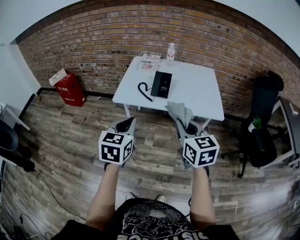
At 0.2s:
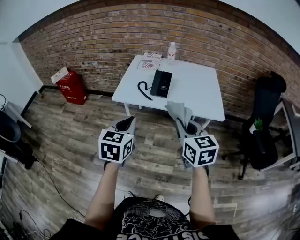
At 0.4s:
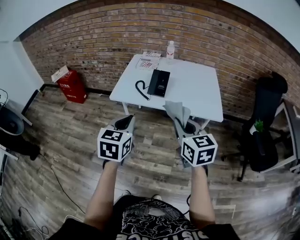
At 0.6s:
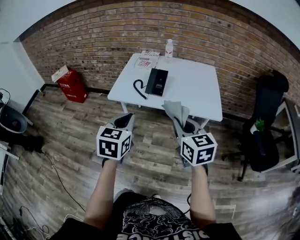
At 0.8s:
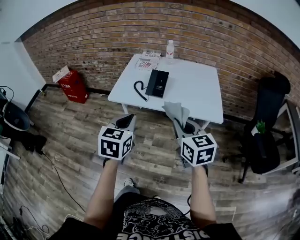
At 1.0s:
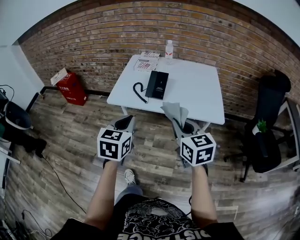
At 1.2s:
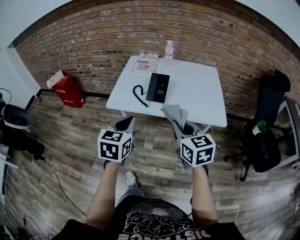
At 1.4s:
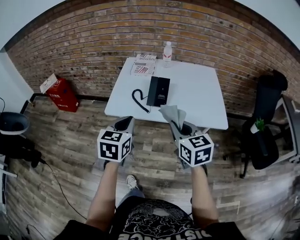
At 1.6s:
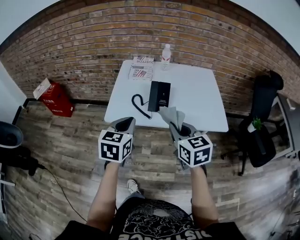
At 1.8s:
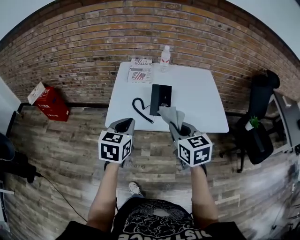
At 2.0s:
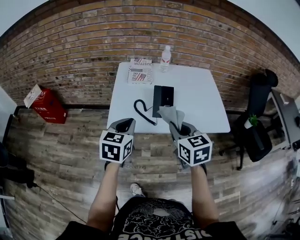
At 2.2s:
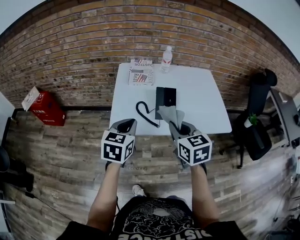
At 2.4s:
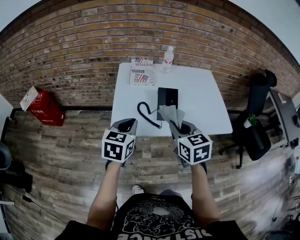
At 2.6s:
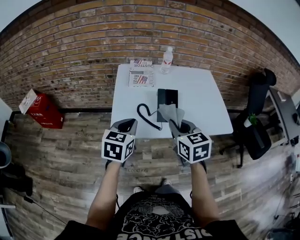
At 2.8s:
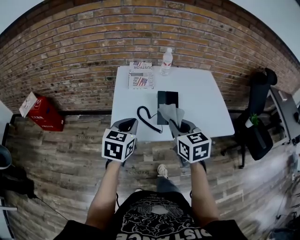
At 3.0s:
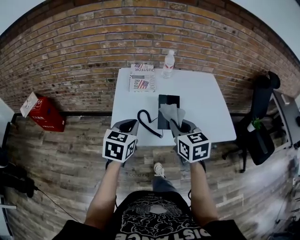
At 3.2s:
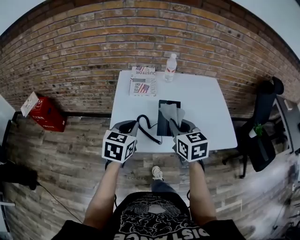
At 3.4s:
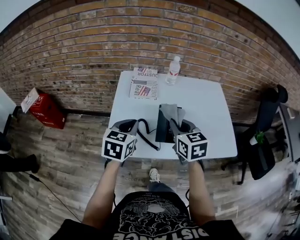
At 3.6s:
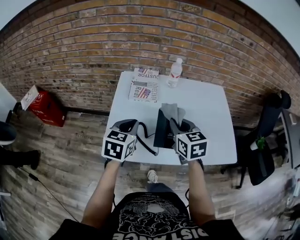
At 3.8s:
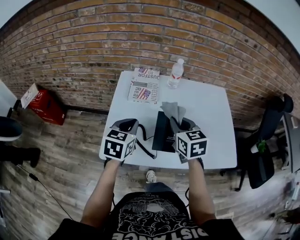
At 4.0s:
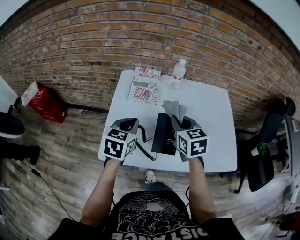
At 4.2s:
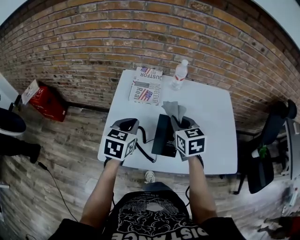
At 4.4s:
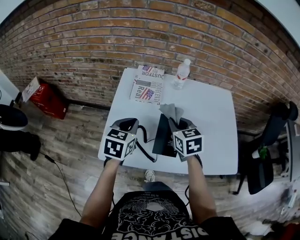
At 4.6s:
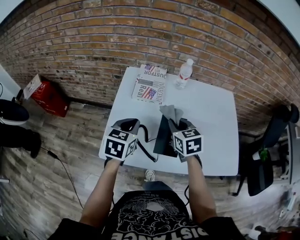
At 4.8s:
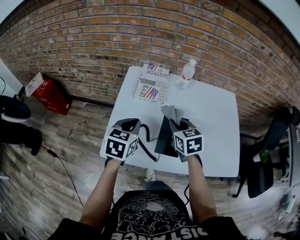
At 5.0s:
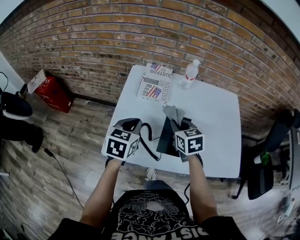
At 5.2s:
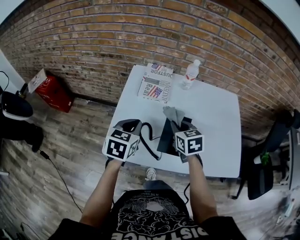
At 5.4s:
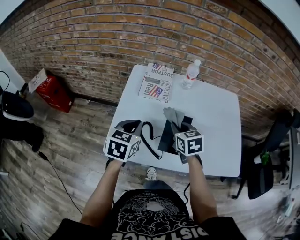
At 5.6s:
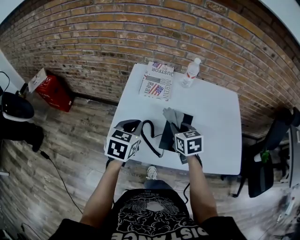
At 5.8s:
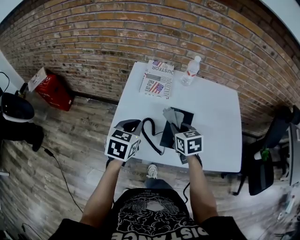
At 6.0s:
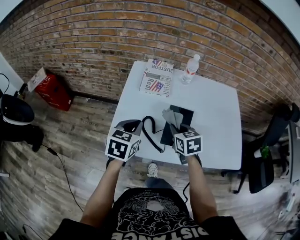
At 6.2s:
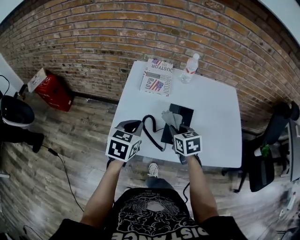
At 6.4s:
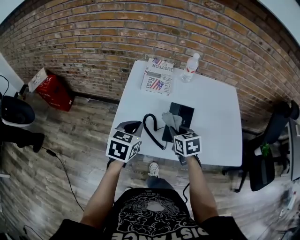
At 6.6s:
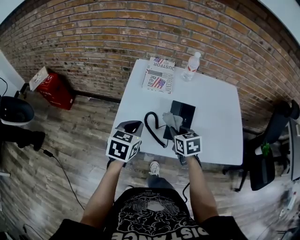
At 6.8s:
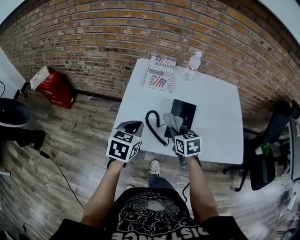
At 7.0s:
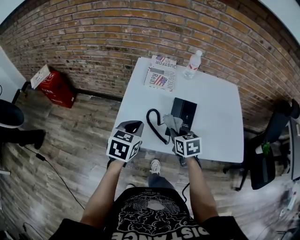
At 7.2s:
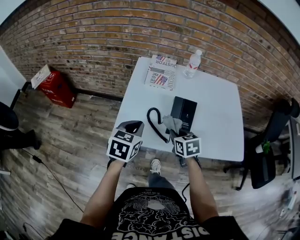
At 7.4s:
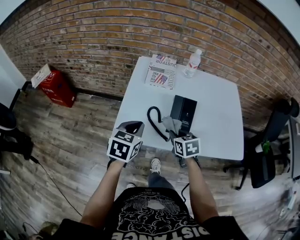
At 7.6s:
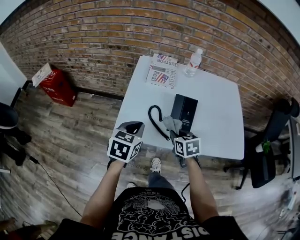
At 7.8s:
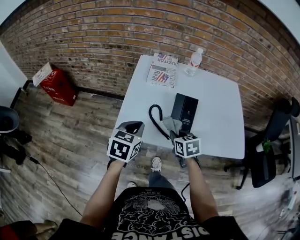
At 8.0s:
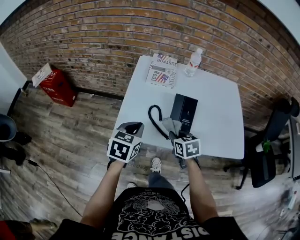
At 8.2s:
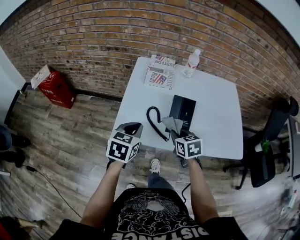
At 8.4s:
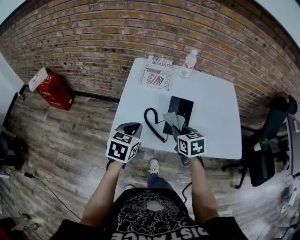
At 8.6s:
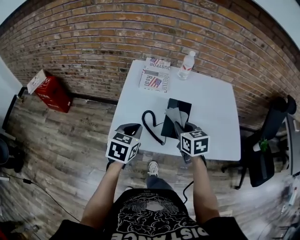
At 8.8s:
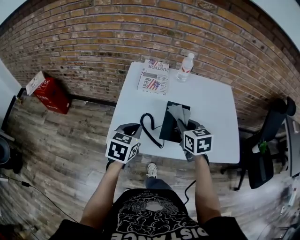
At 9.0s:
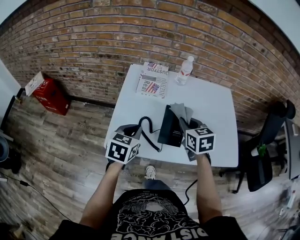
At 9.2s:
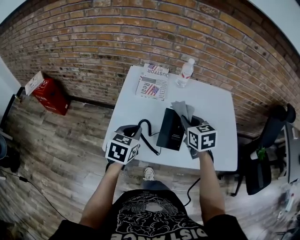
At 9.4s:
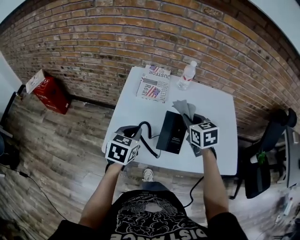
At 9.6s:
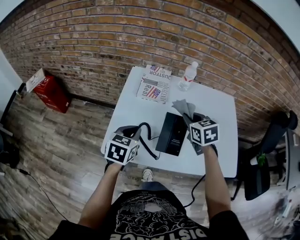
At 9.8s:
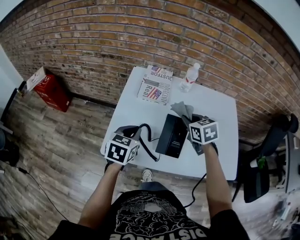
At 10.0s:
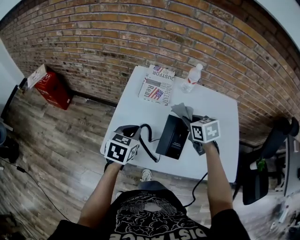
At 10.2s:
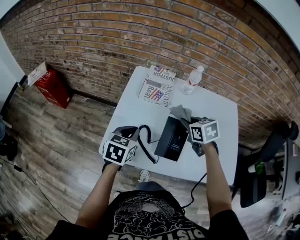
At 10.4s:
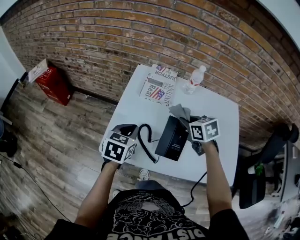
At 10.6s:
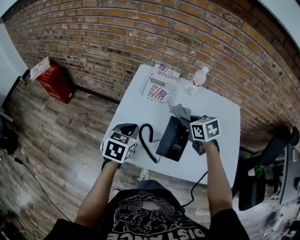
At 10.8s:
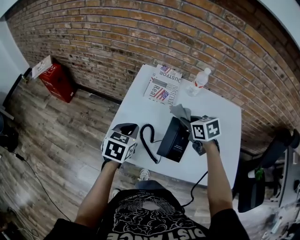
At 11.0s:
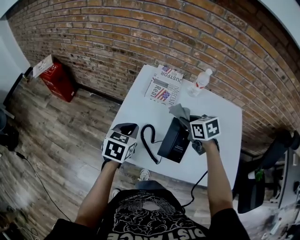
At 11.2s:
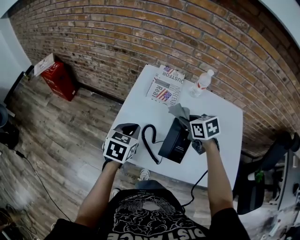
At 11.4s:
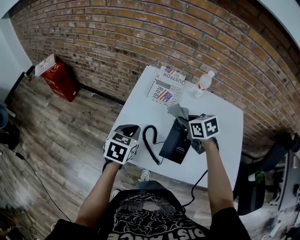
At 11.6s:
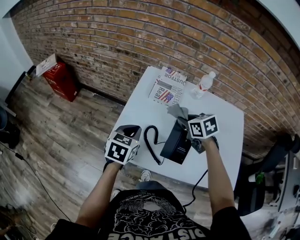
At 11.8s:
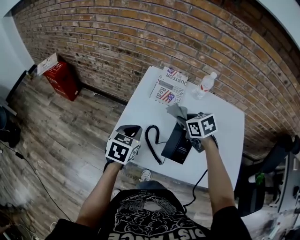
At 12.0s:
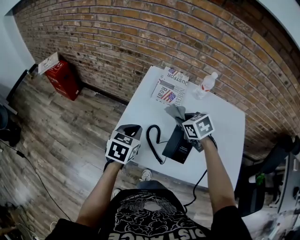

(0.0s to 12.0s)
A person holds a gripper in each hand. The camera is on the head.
0.0s - 1.6s: The two grippers go approximately 15 cm forward.
1.6s - 3.0s: Both grippers travel together forward and to the left, some 15 cm.
3.0s - 4.4s: The two grippers go approximately 15 cm forward.
4.4s - 6.0s: The right gripper is displaced downward and backward by some 10 cm; the left gripper shifts roughly 5 cm backward.
6.0s - 7.6s: Both grippers move backward, approximately 10 cm.
7.6s - 9.0s: The right gripper heads upward, forward and to the right, covering approximately 15 cm. The left gripper shifts some 5 cm forward.
9.0s - 10.4s: The right gripper goes some 10 cm forward, and swivels some 20 degrees, while the left gripper heads forward, covering some 5 cm.
10.4s - 12.0s: The right gripper heads to the left, covering approximately 5 cm.

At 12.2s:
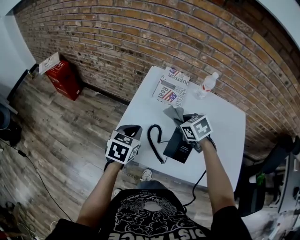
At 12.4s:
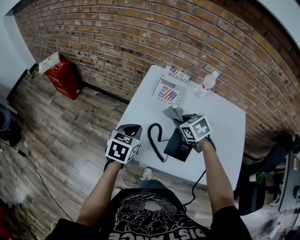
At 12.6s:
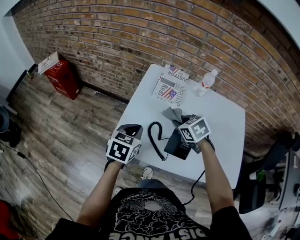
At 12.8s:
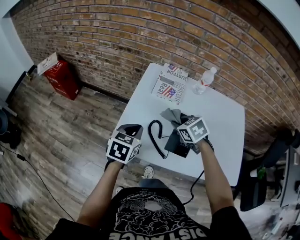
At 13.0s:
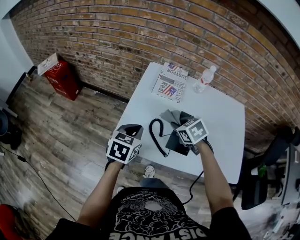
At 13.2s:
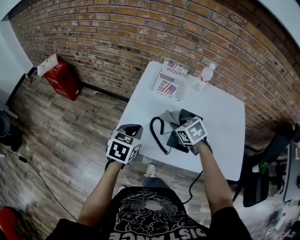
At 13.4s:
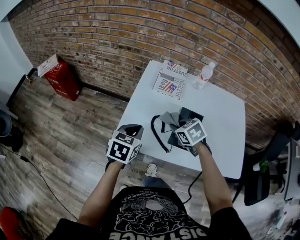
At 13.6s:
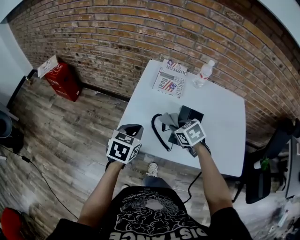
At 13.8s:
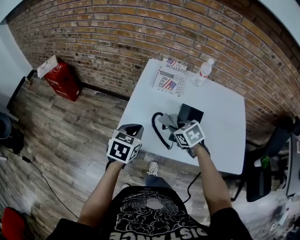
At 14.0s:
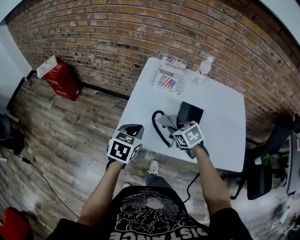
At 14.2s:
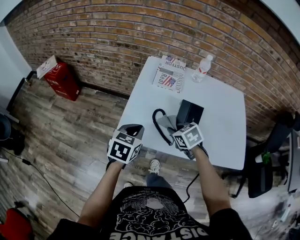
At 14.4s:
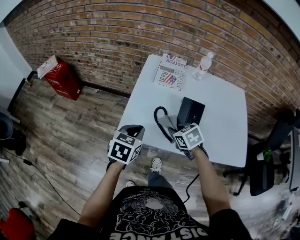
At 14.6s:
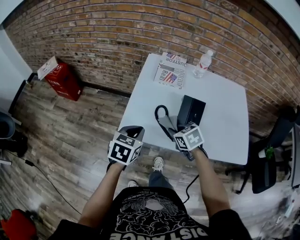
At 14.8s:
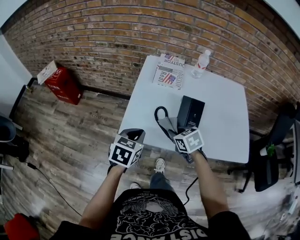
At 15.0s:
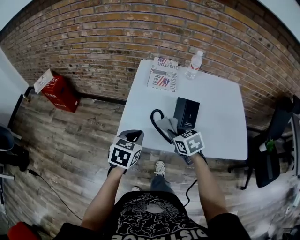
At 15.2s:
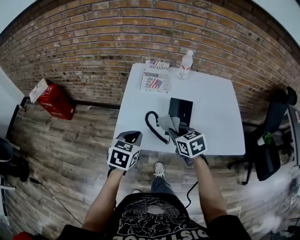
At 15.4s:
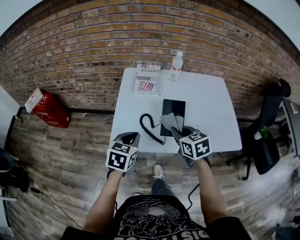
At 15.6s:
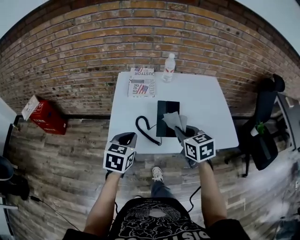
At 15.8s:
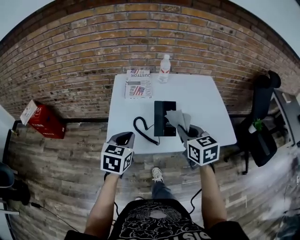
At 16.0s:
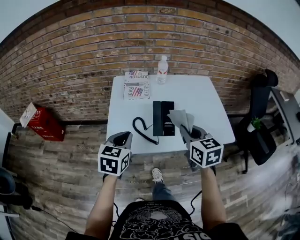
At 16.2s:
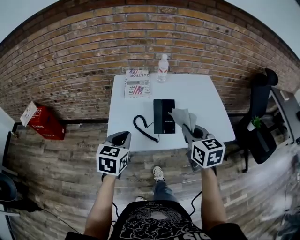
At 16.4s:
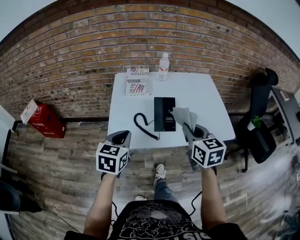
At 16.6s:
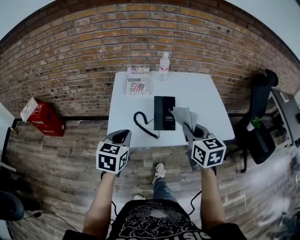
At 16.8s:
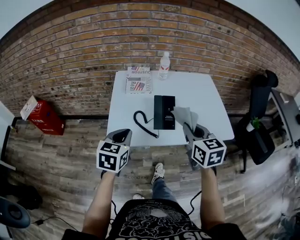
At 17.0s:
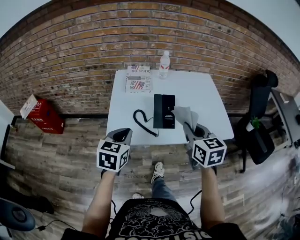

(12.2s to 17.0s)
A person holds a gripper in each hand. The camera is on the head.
12.2s - 13.8s: The left gripper moves backward, about 5 cm; the right gripper shifts approximately 10 cm backward.
13.8s - 15.4s: The right gripper moves upward and backward, approximately 10 cm, and changes its angle by roughly 30 degrees.
15.4s - 17.0s: The right gripper goes about 15 cm upward, backward and to the right, and rotates roughly 20 degrees. The left gripper changes place by about 5 cm.

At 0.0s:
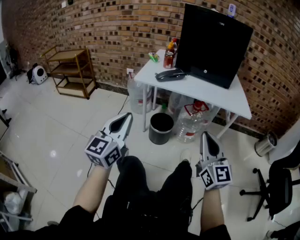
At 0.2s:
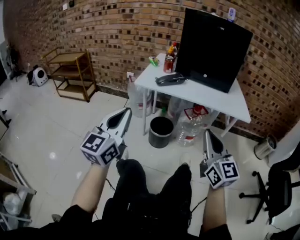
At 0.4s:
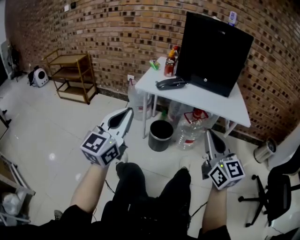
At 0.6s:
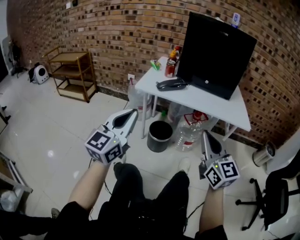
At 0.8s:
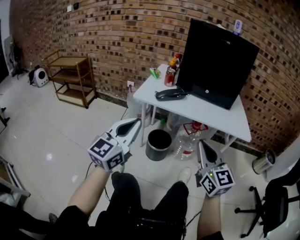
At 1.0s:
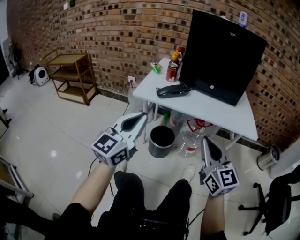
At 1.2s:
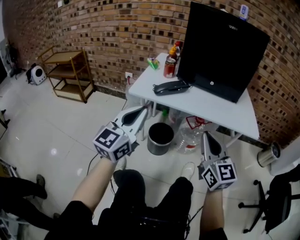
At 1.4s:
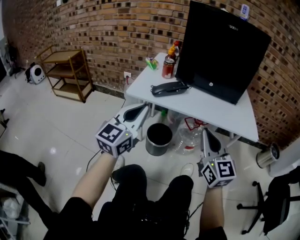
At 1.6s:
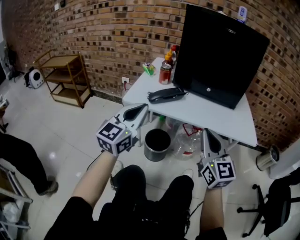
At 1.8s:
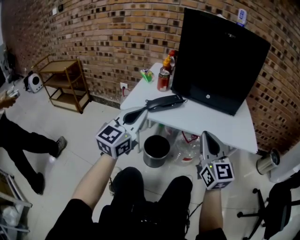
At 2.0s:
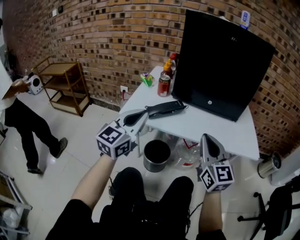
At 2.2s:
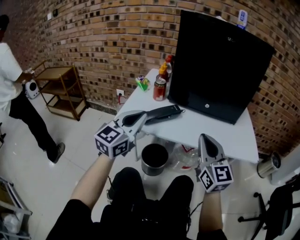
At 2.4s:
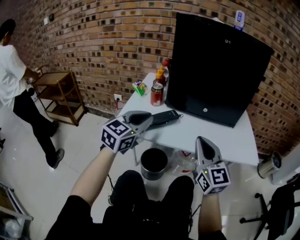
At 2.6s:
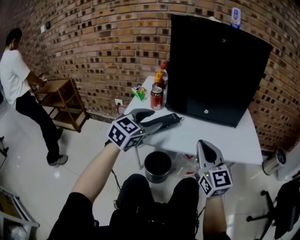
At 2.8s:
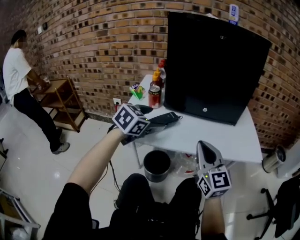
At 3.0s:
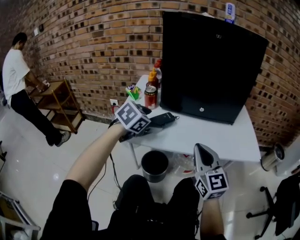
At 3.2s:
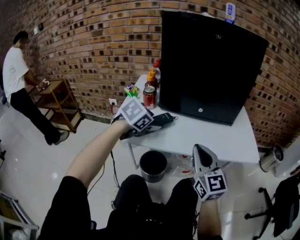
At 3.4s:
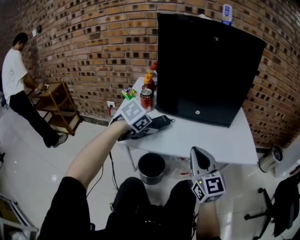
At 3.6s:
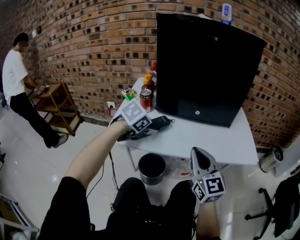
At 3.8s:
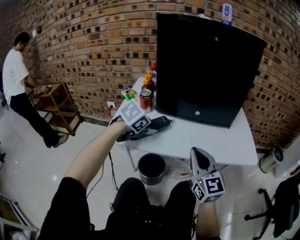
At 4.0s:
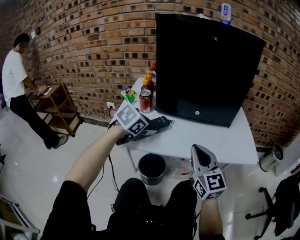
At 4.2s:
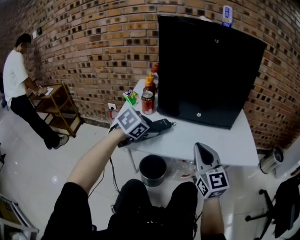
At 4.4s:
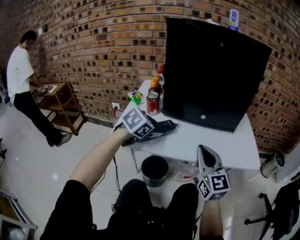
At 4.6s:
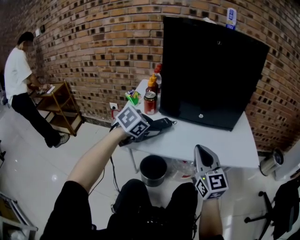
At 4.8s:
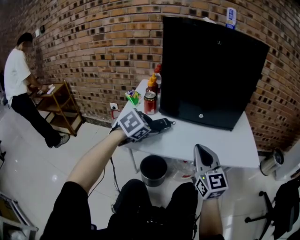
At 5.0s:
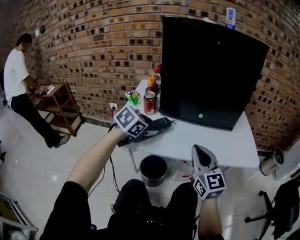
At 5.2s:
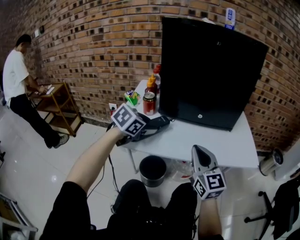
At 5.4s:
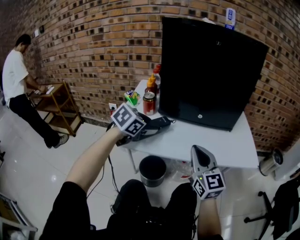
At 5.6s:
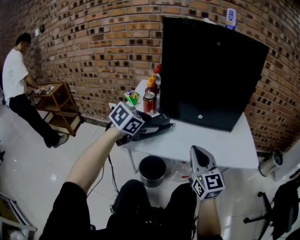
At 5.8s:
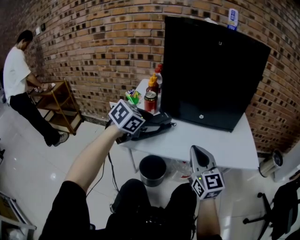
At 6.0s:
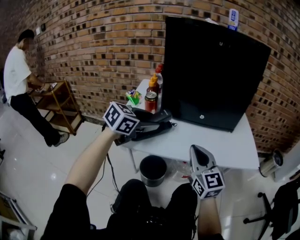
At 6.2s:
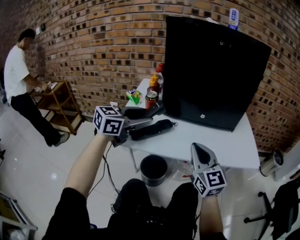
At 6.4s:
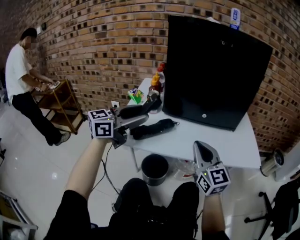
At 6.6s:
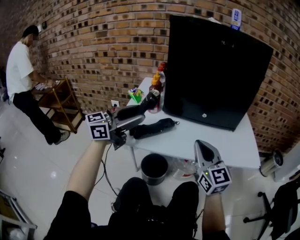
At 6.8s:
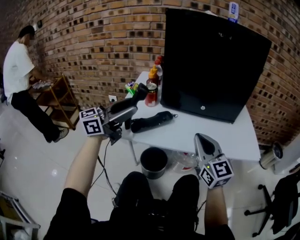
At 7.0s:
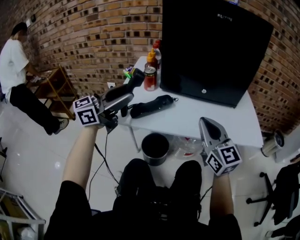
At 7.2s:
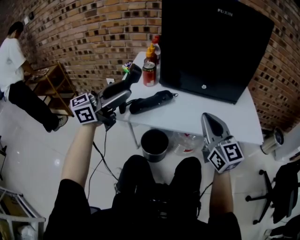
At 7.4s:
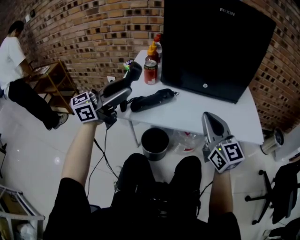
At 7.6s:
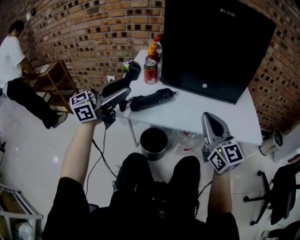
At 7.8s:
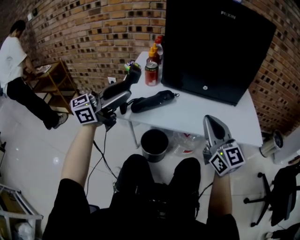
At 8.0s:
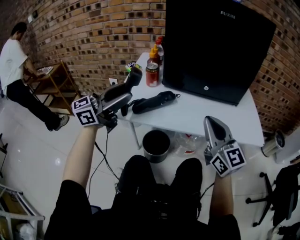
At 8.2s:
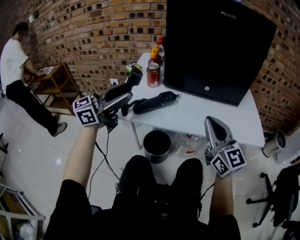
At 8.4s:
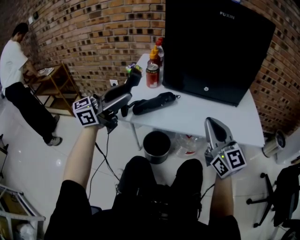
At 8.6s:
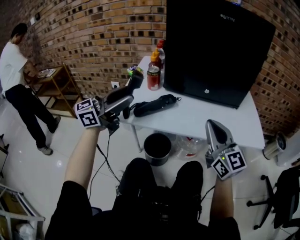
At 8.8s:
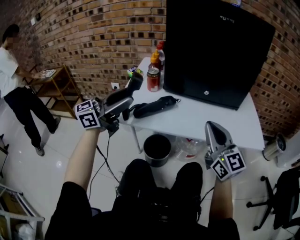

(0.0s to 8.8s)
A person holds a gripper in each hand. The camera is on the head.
0.0s - 1.4s: The two grippers go about 15 cm forward.
1.4s - 3.0s: The right gripper heads forward, covering some 15 cm. Meanwhile the left gripper travels forward by approximately 25 cm, tips its fingers downward by approximately 50 degrees, and opens its fingers.
3.0s - 4.4s: The left gripper closes its fingers.
4.4s - 5.8s: The grippers move only a little.
5.8s - 7.4s: The left gripper heads backward, upward and to the left, covering some 15 cm, and angles its fingers upward, by approximately 50 degrees.
7.4s - 8.8s: The grippers make only small movements.
